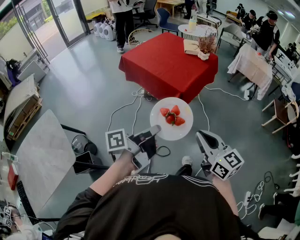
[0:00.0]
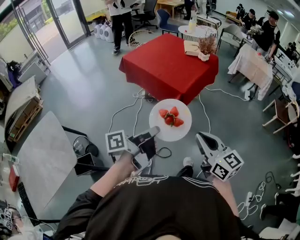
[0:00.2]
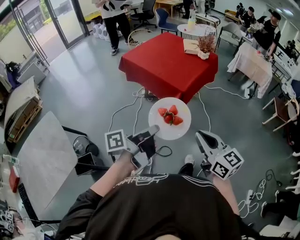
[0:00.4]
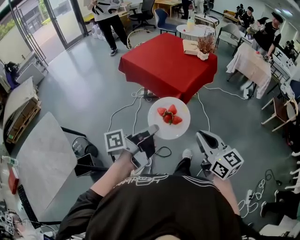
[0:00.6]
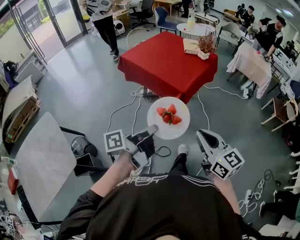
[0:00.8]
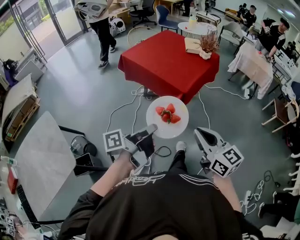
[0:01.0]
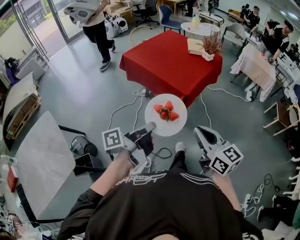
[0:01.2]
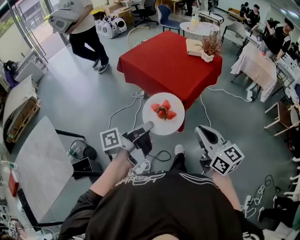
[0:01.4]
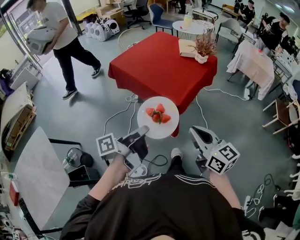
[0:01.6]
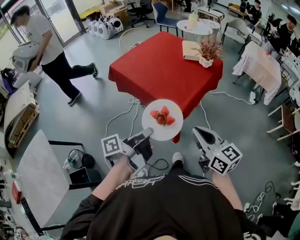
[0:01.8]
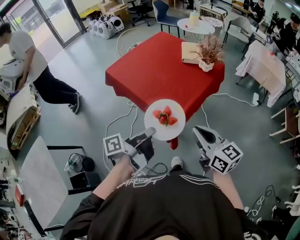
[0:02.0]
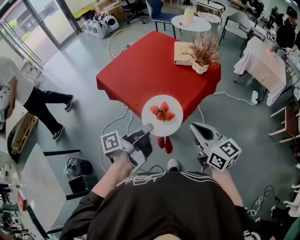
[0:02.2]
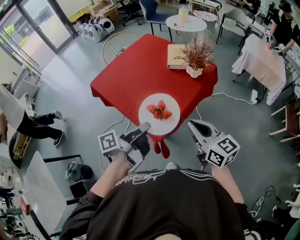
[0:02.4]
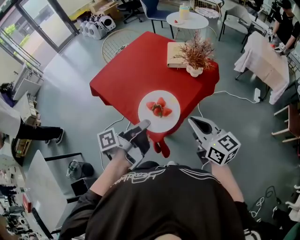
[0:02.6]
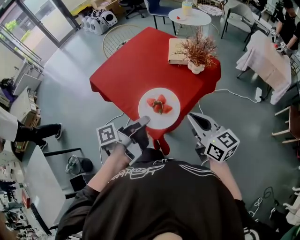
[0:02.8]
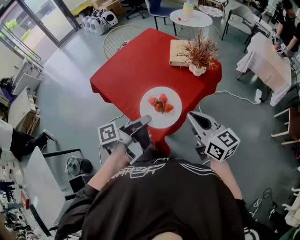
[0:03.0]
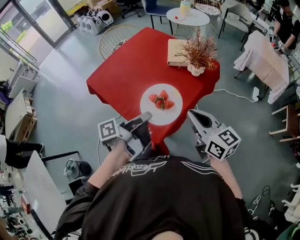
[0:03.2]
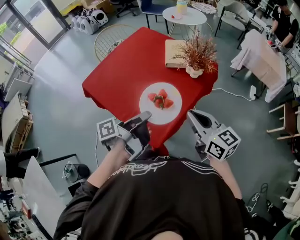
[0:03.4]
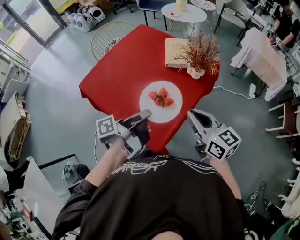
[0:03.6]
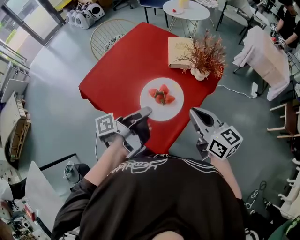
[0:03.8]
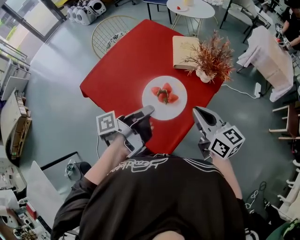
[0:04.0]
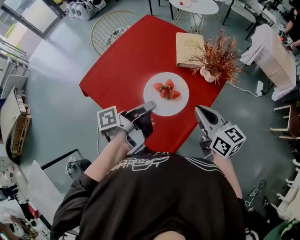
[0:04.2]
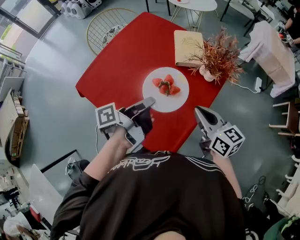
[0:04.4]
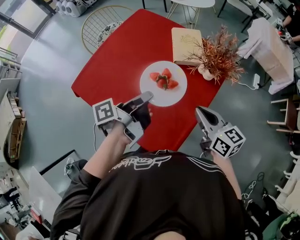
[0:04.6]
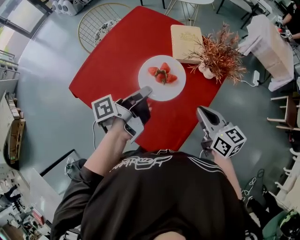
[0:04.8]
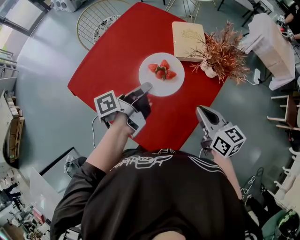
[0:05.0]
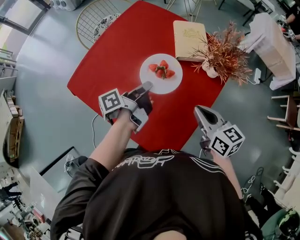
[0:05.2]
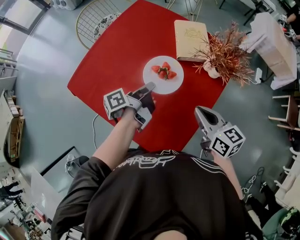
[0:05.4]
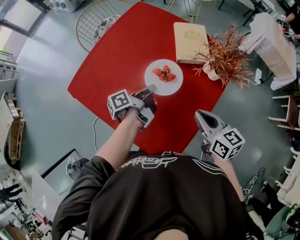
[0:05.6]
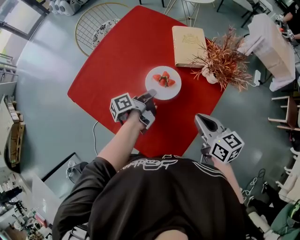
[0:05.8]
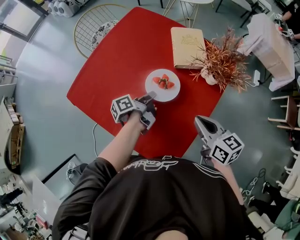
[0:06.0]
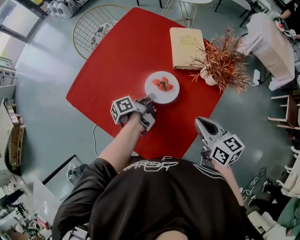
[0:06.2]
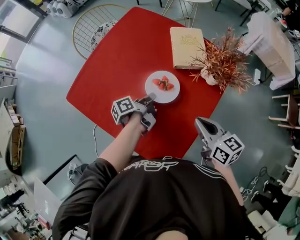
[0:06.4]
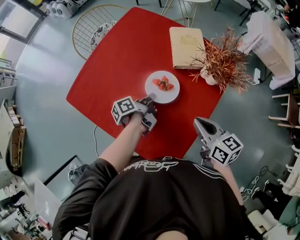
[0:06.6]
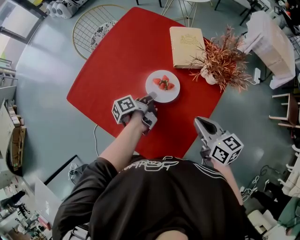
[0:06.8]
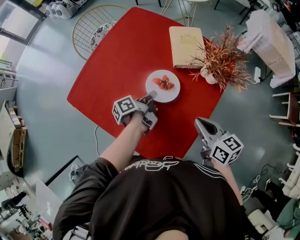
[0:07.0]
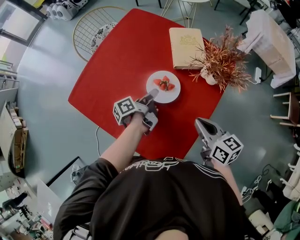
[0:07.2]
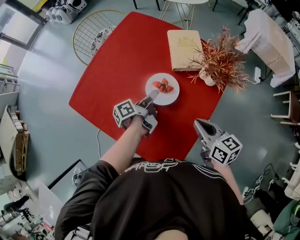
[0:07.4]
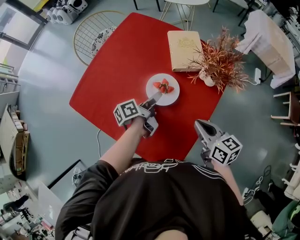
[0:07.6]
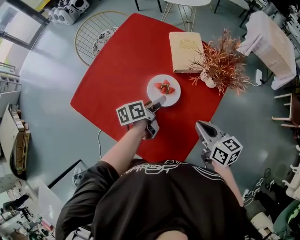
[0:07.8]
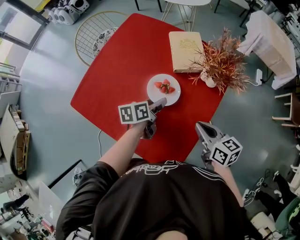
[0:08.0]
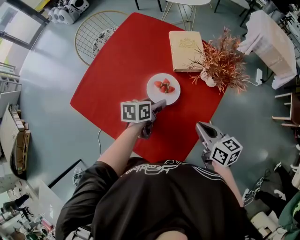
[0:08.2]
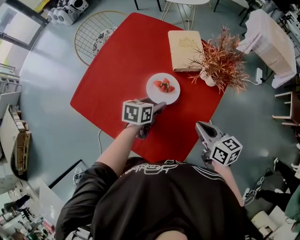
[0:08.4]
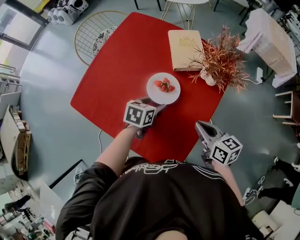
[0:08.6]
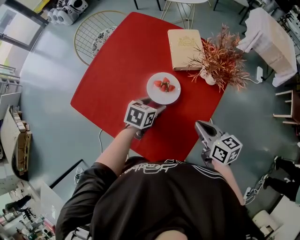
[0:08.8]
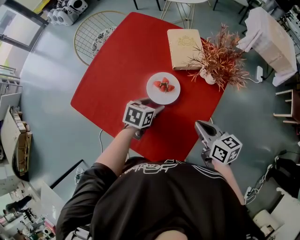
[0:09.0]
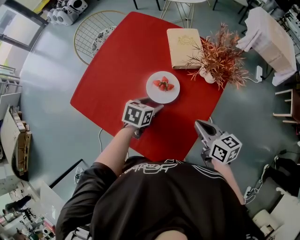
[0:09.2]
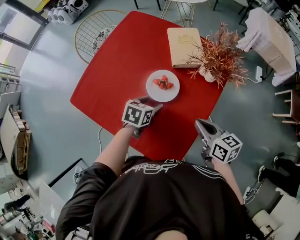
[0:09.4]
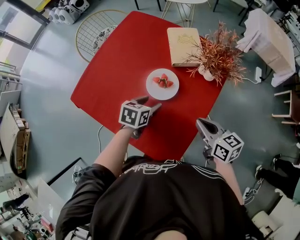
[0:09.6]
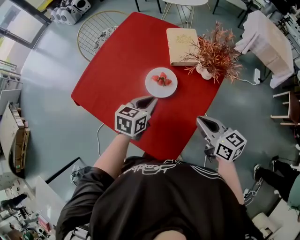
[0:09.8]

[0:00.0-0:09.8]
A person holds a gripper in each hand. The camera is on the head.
0:00.0 to 0:01.4: The two grippers go about 10 cm forward.
0:01.4 to 0:02.8: Both grippers travel together forward and to the right, roughly 40 cm.
0:02.8 to 0:04.2: The grippers both shift forward by some 15 cm.
0:04.2 to 0:05.6: The right gripper moves downward, approximately 5 cm, while the left gripper is displaced downward and forward by approximately 20 cm.
0:05.6 to 0:07.0: There are only small adjustments of the grippers.
0:07.0 to 0:08.4: The left gripper rotates around the line of its fingers by about 60 degrees, clockwise from behind, and opens.
0:08.4 to 0:09.8: The left gripper heads upward, covering approximately 5 cm, and closes up.

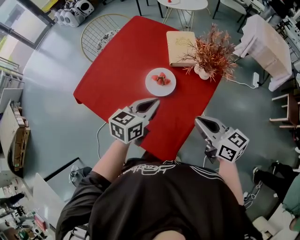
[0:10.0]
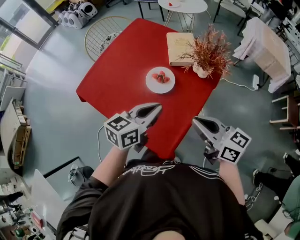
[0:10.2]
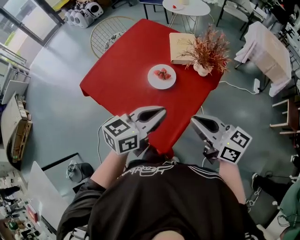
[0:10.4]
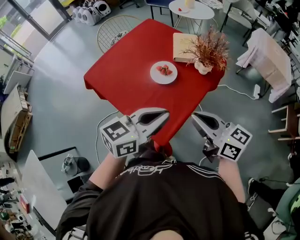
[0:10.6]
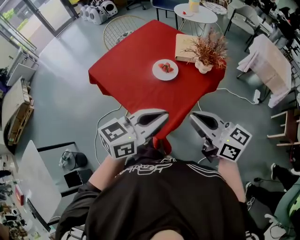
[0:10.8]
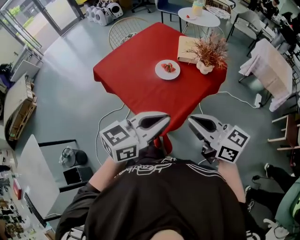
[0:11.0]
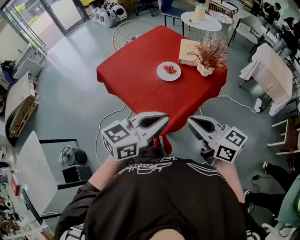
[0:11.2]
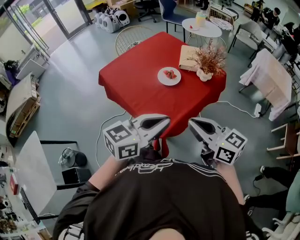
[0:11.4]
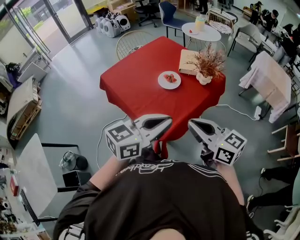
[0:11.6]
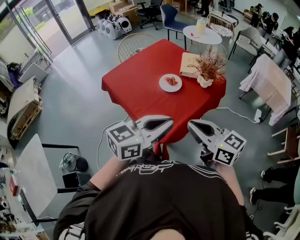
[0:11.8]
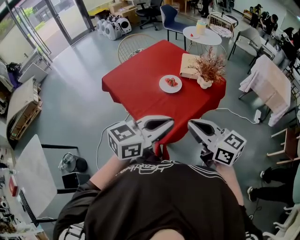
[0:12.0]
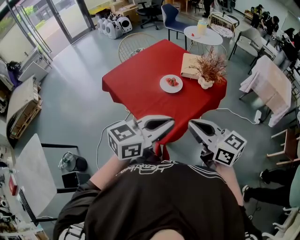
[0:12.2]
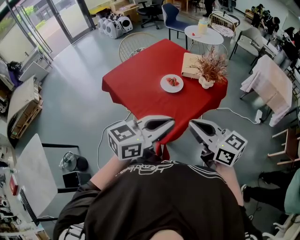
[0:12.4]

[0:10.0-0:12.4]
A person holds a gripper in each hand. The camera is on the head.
0:10.0 to 0:11.2: The left gripper heads backward and upward, covering approximately 30 cm; the right gripper goes about 20 cm backward and upward, and rotates some 20 degrees.
0:11.2 to 0:12.4: There are only small adjustments of the grippers.

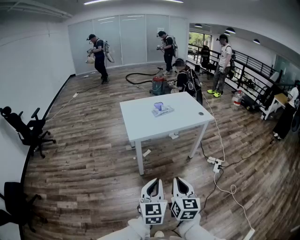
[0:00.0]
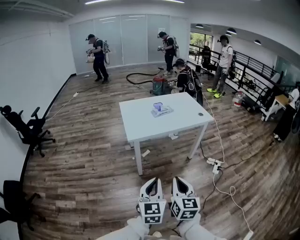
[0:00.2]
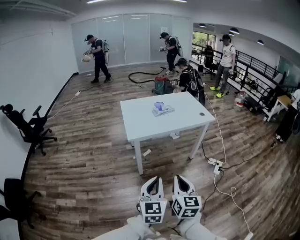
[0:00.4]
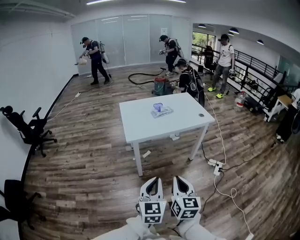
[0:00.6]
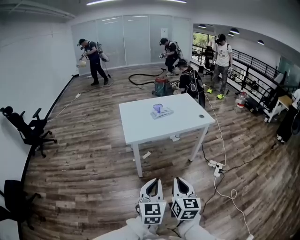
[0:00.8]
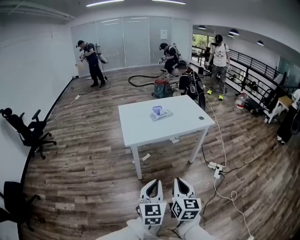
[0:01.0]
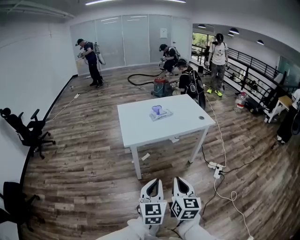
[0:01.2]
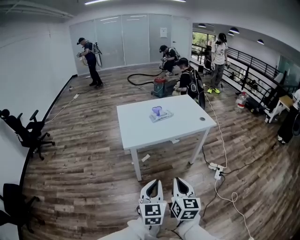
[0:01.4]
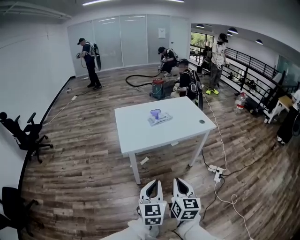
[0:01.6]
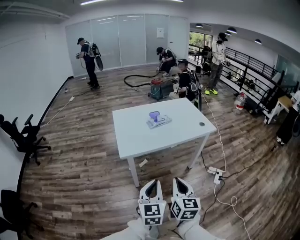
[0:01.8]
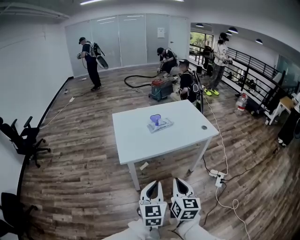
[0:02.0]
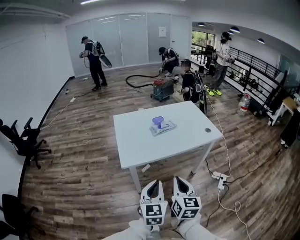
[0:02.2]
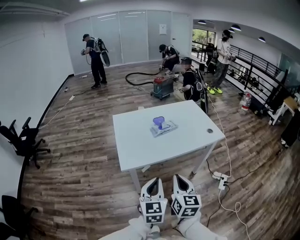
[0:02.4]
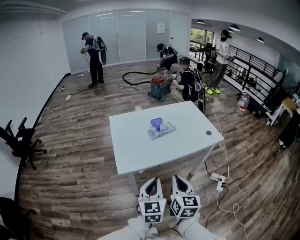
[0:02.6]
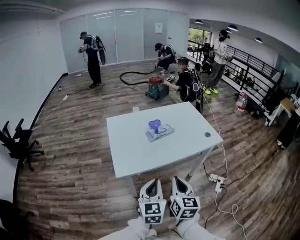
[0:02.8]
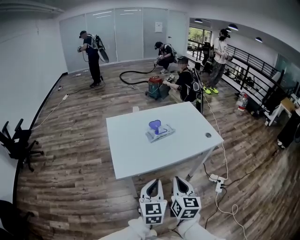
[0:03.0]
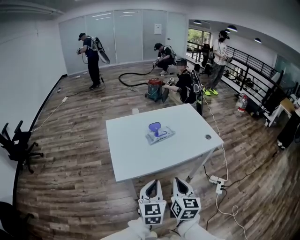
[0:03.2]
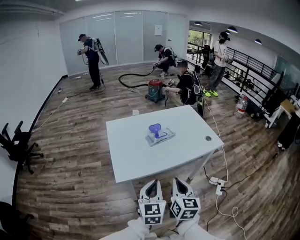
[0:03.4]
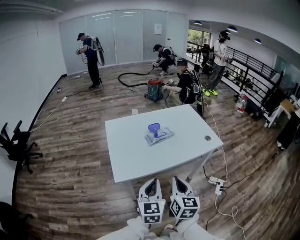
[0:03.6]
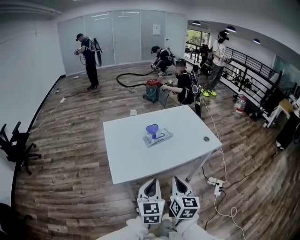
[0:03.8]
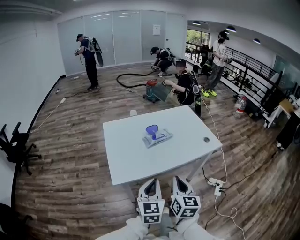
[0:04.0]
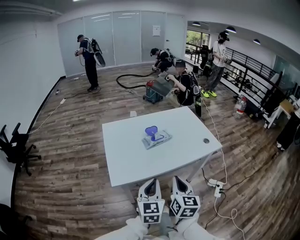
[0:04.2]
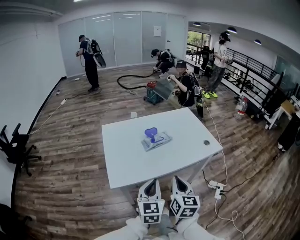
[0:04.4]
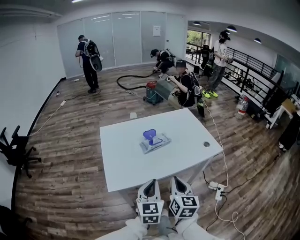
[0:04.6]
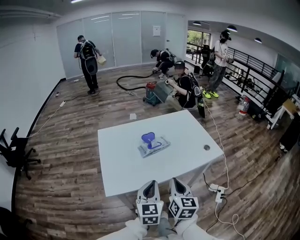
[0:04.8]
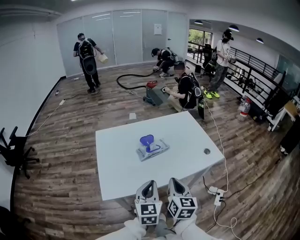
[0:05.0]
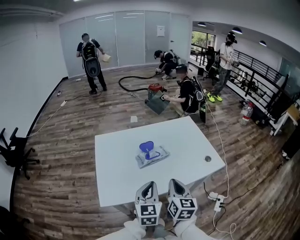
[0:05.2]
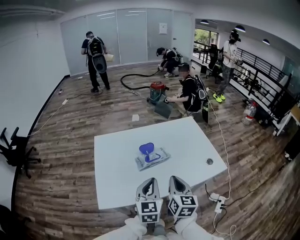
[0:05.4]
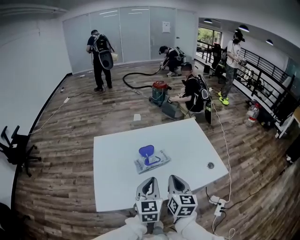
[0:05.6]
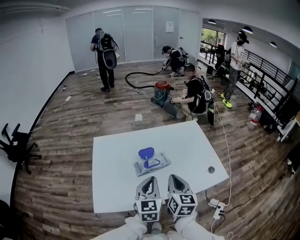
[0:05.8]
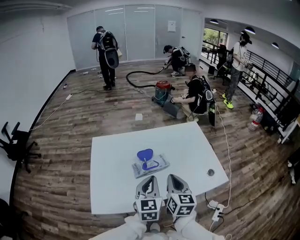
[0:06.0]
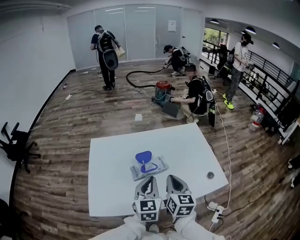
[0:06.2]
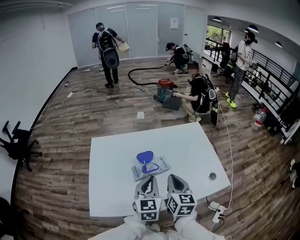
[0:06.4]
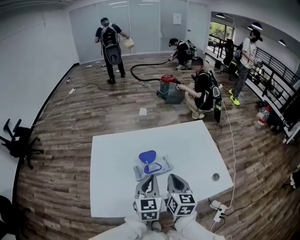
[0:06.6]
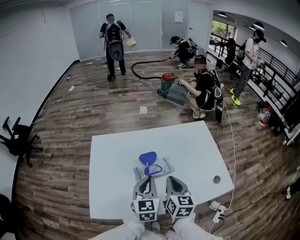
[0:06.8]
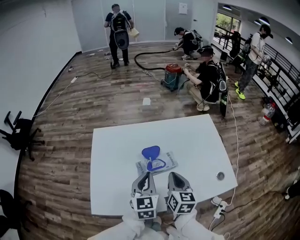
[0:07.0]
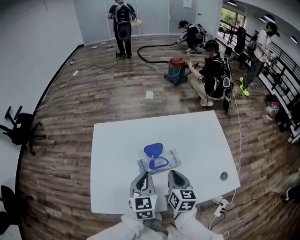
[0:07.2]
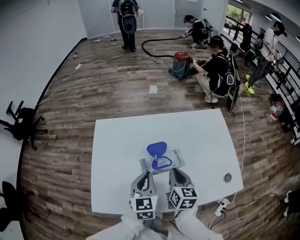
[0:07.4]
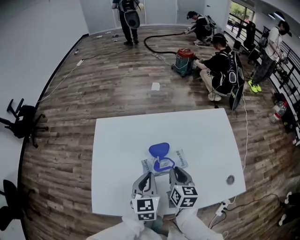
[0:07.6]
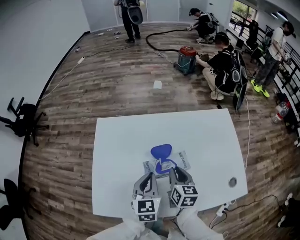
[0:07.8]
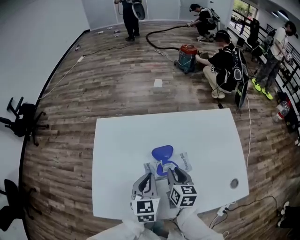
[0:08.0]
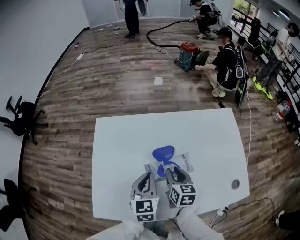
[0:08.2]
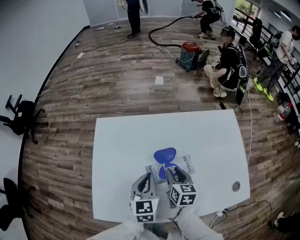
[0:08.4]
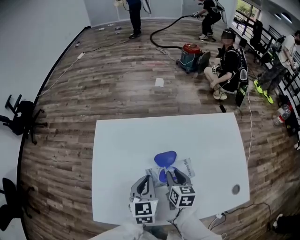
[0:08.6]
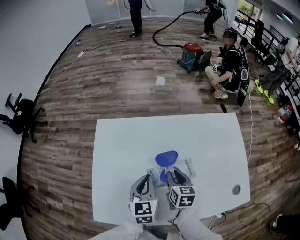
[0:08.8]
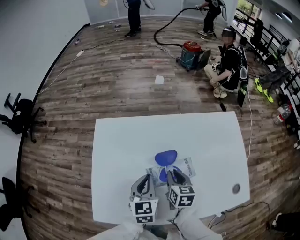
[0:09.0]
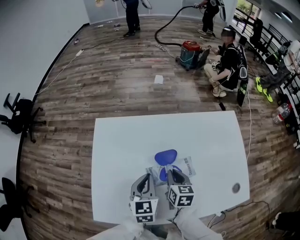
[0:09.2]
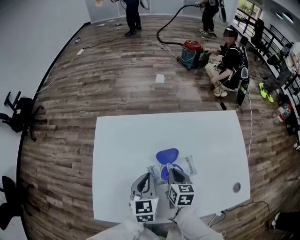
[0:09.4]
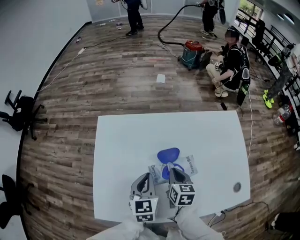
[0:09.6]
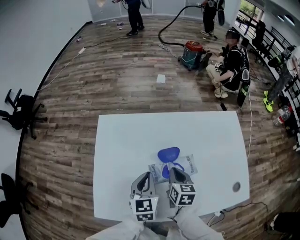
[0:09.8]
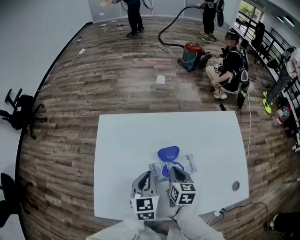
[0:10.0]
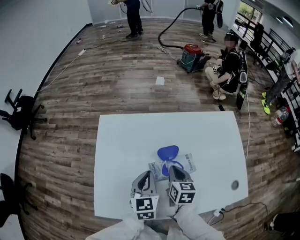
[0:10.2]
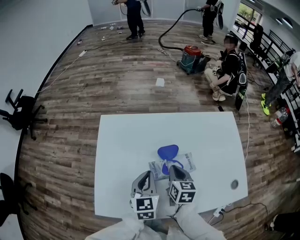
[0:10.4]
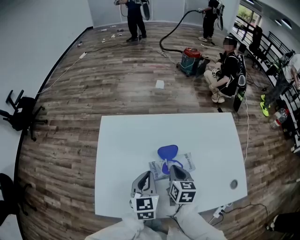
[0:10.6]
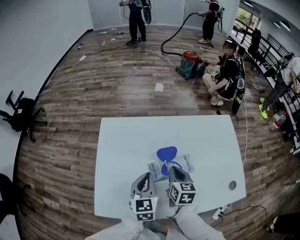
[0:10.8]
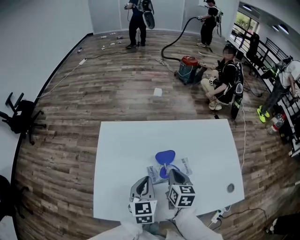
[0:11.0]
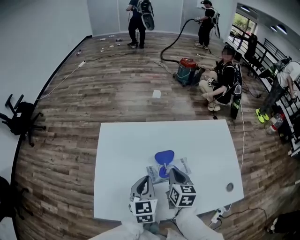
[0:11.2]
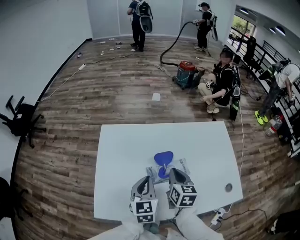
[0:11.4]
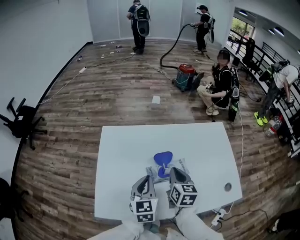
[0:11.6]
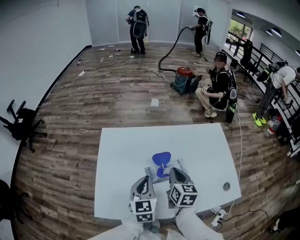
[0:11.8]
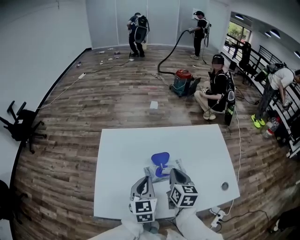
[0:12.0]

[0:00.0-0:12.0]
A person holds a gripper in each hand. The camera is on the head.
0:00.0 to 0:01.6: The two grippers go approximately 10 cm forward.
0:01.6 to 0:03.0: Both grippers move forward, some 20 cm.
0:03.0 to 0:04.4: Both grippers travel together forward, about 5 cm.
0:04.4 to 0:06.0: Both grippers travel together forward, approximately 25 cm.
0:06.0 to 0:07.6: The right gripper goes some 15 cm downward and forward, while the left gripper heads forward, downward and to the left, covering about 15 cm.
0:07.6 to 0:09.0: The left gripper ends up some 5 cm from where it was; the right gripper shifts some 5 cm downward.
0:09.0 to 0:10.4: The right gripper closes up.
0:10.4 to 0:12.0: The left gripper heads upward, covering roughly 5 cm. Meanwhile the right gripper travels upward by roughly 10 cm.
